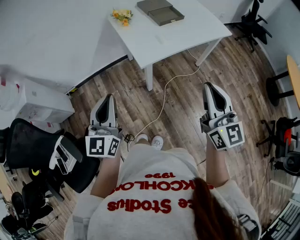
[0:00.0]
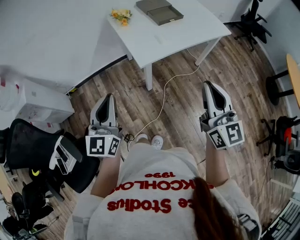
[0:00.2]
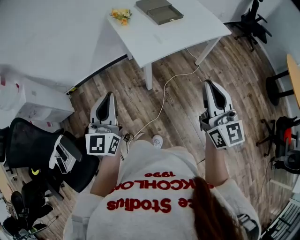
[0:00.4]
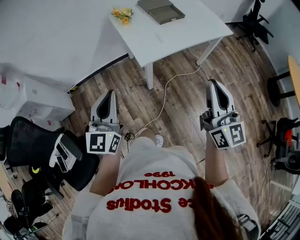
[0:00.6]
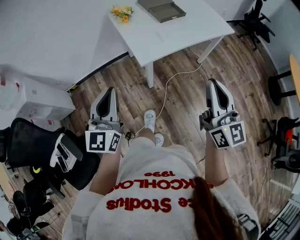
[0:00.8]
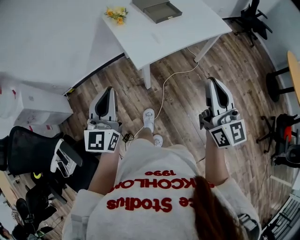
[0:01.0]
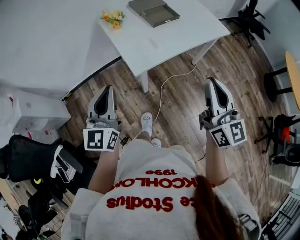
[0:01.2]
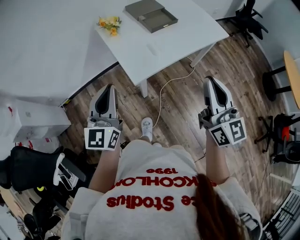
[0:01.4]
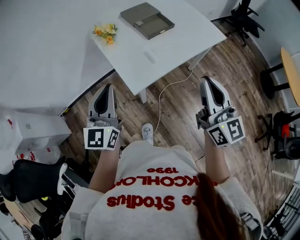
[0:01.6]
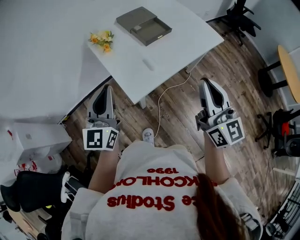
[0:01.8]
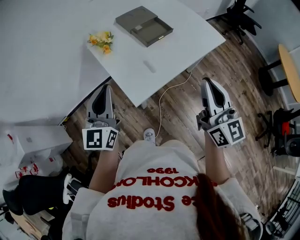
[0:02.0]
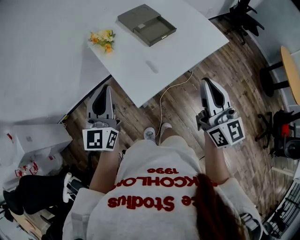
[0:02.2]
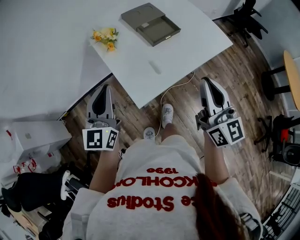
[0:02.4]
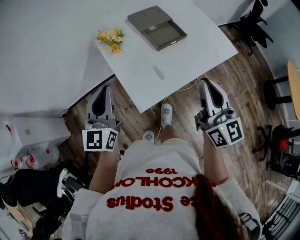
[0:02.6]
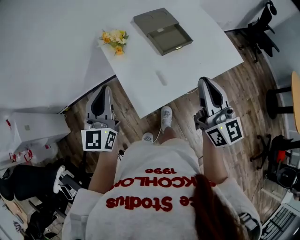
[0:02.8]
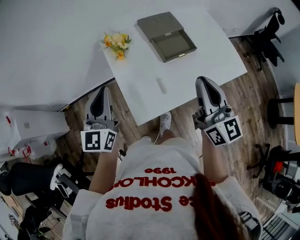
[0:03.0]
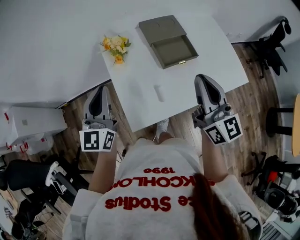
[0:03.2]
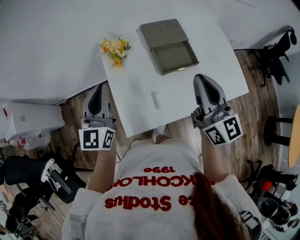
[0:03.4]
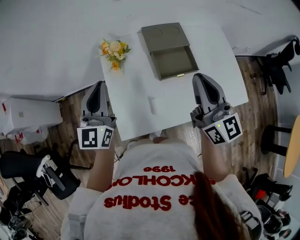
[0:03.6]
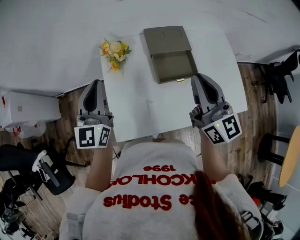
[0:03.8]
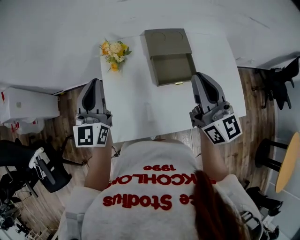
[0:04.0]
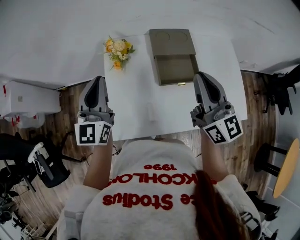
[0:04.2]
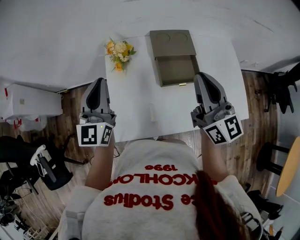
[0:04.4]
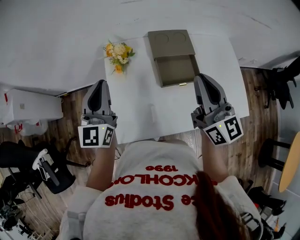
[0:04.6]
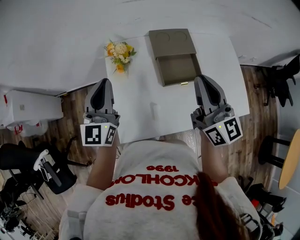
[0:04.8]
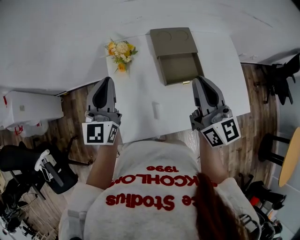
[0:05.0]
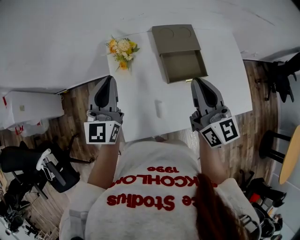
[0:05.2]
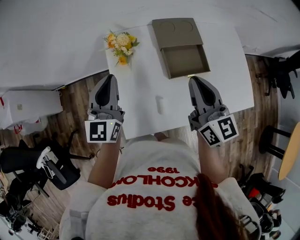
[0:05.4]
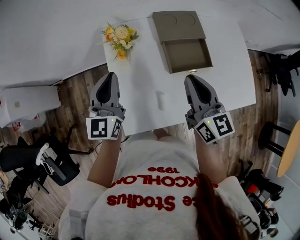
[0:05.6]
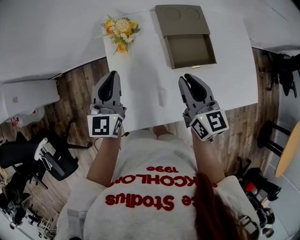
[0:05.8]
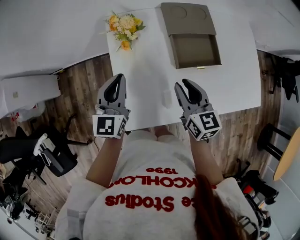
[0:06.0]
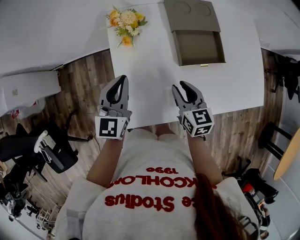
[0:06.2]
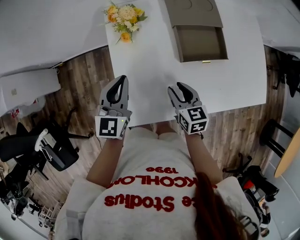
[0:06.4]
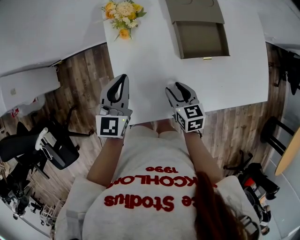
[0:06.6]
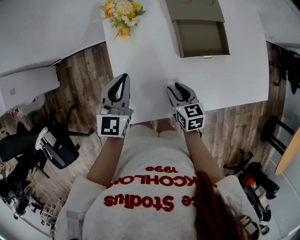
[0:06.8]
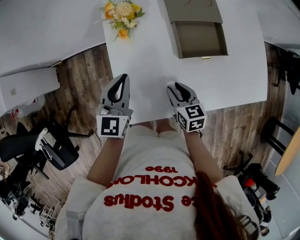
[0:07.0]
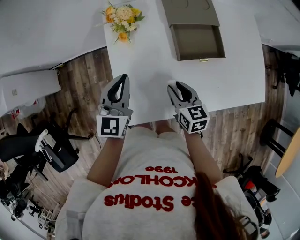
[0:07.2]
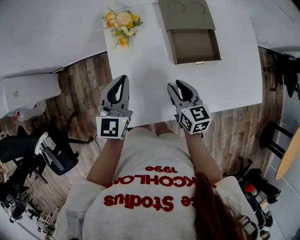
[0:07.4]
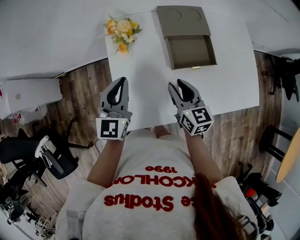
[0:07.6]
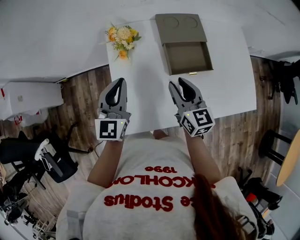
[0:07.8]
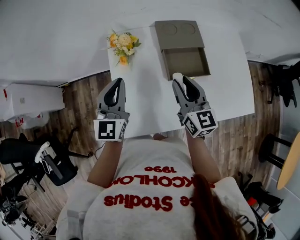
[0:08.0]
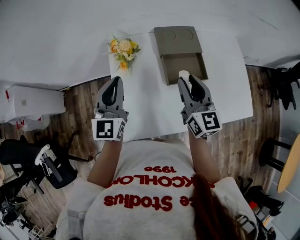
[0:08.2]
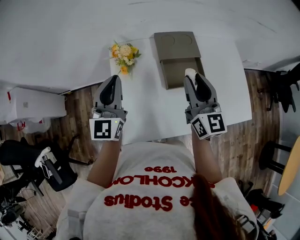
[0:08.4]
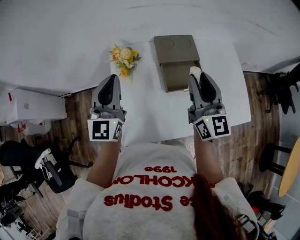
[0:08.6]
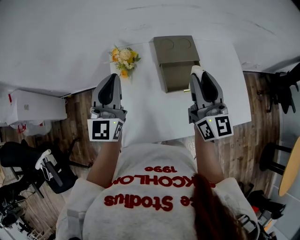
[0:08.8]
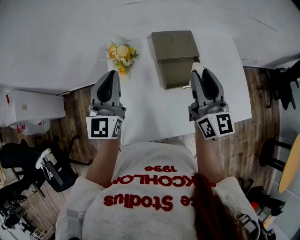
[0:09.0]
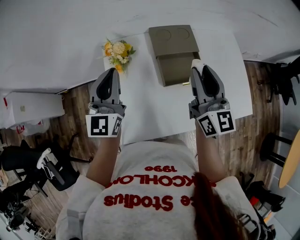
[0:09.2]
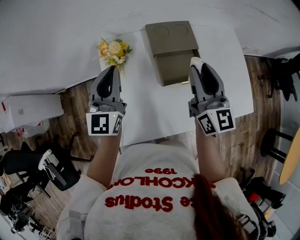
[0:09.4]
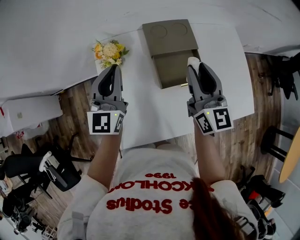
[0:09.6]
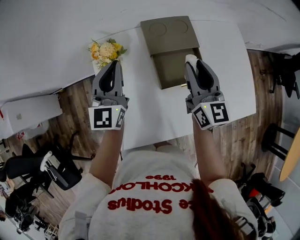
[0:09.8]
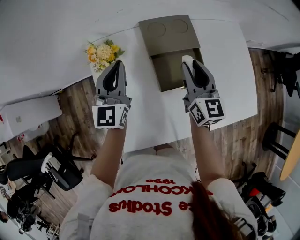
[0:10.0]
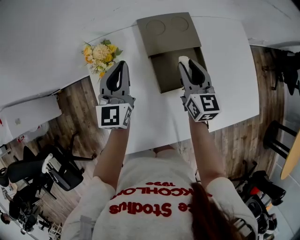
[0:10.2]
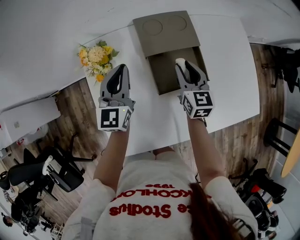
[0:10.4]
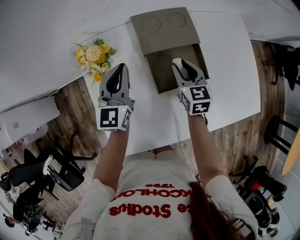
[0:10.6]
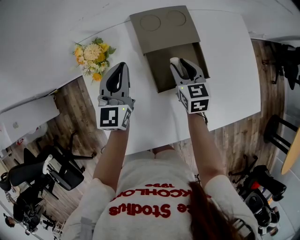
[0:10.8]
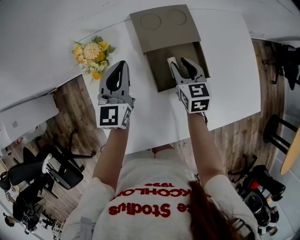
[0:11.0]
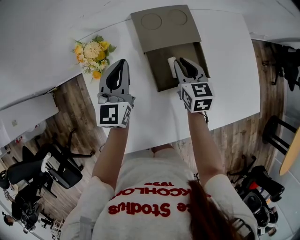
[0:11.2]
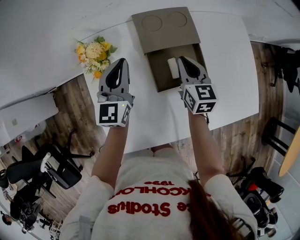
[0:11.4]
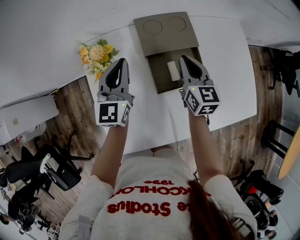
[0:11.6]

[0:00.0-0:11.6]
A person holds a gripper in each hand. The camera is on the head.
0:00.0 to 0:01.4: Both grippers move forward, about 15 cm.
0:01.4 to 0:02.8: The two grippers go some 20 cm forward.
0:02.8 to 0:04.4: The left gripper shifts roughly 15 cm forward and to the right, and rotates about 20 degrees; the right gripper goes approximately 20 cm forward and to the right, and changes its angle by roughly 20 degrees.
0:04.4 to 0:05.8: The right gripper travels downward and to the left by some 15 cm, and swivels some 20 degrees, while the left gripper travels downward by about 10 cm.
0:05.8 to 0:07.2: The right gripper heads downward, covering approximately 15 cm, and turns by some 20 degrees. Meanwhile the left gripper moves about 5 cm.
0:07.2 to 0:08.8: The left gripper moves upward, some 15 cm, and turns by about 20 degrees, while the right gripper moves upward, about 30 cm, and tilts its fingers roughly 40 degrees upward.
0:08.8 to 0:10.2: The left gripper travels downward, forward and to the right by about 20 cm; the right gripper is displaced downward and forward by approximately 20 cm, and changes its angle by some 20 degrees.
0:10.2 to 0:11.6: The right gripper goes downward and returns, roughly 10 cm each way, and closes its fingers.

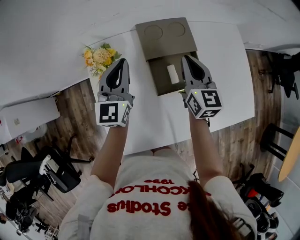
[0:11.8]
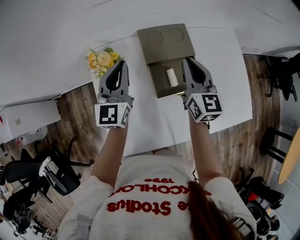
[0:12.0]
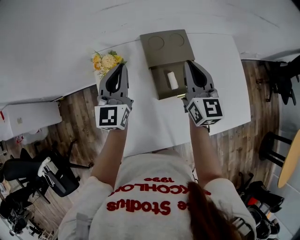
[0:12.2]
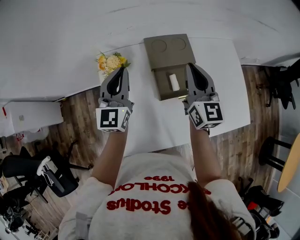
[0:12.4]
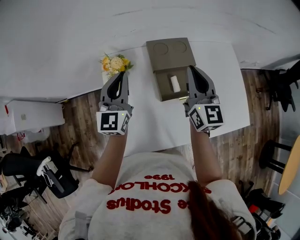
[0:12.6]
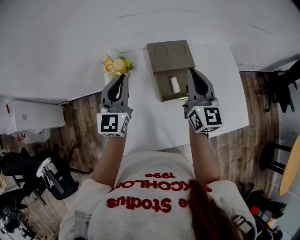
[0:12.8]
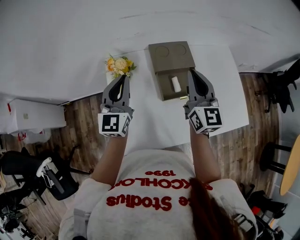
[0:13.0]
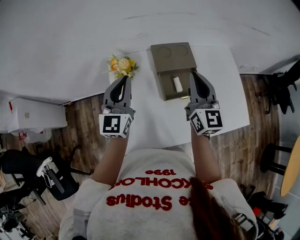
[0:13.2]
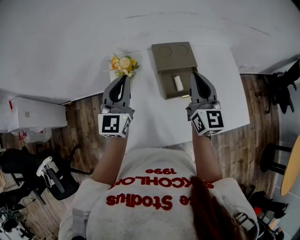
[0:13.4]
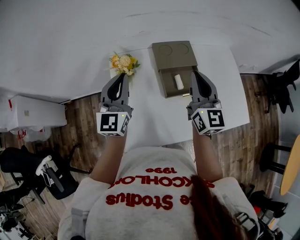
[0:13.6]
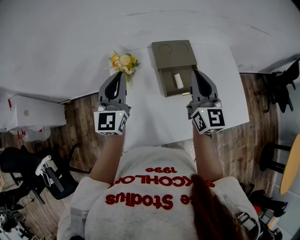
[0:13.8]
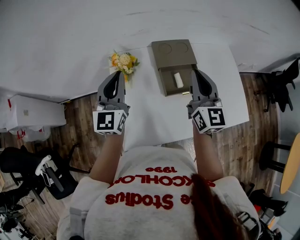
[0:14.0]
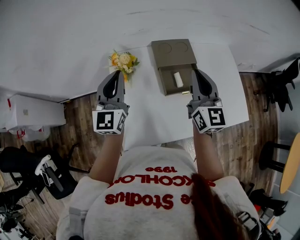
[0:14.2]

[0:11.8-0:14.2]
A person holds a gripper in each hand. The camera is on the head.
0:11.8 to 0:13.0: Both grippers travel together upward and backward, about 10 cm.
0:13.0 to 0:14.2: There are only small adjustments of the grippers.

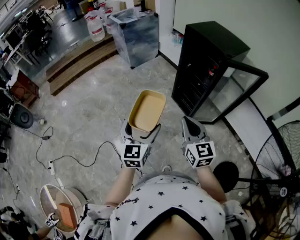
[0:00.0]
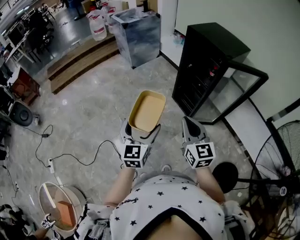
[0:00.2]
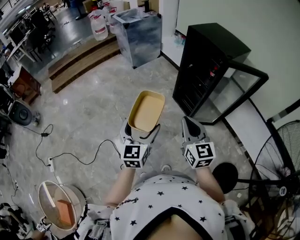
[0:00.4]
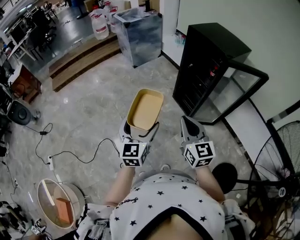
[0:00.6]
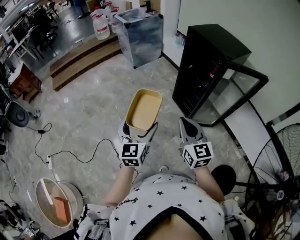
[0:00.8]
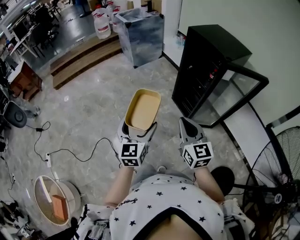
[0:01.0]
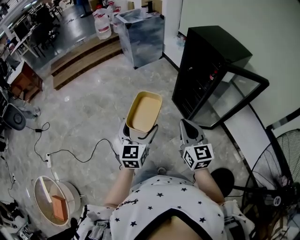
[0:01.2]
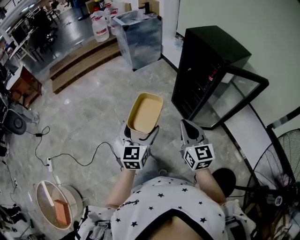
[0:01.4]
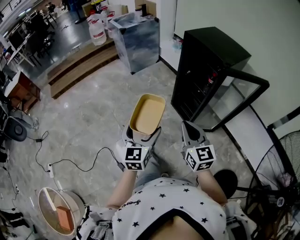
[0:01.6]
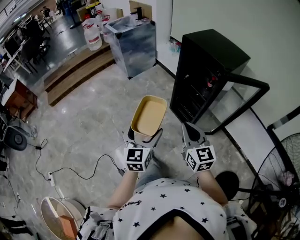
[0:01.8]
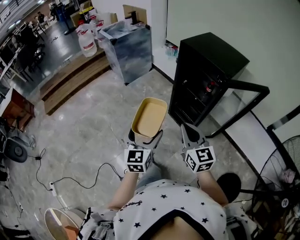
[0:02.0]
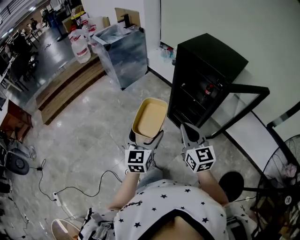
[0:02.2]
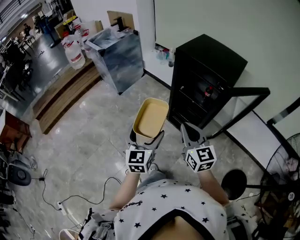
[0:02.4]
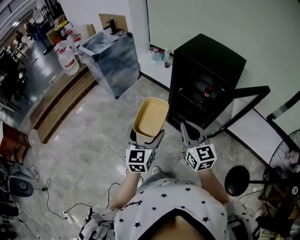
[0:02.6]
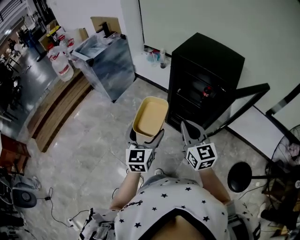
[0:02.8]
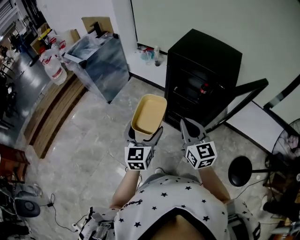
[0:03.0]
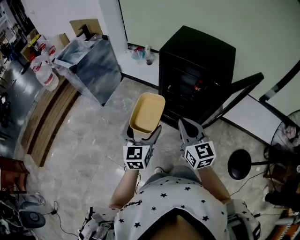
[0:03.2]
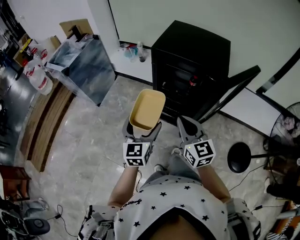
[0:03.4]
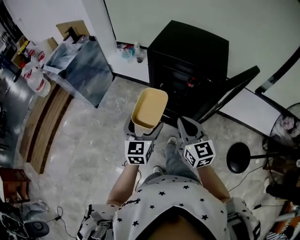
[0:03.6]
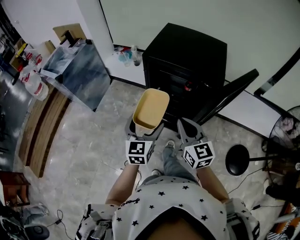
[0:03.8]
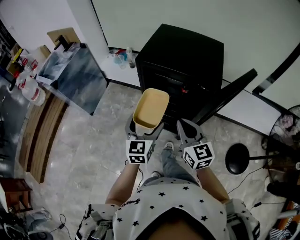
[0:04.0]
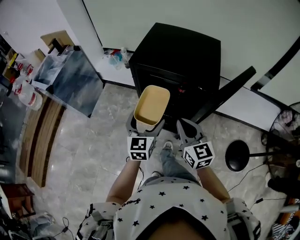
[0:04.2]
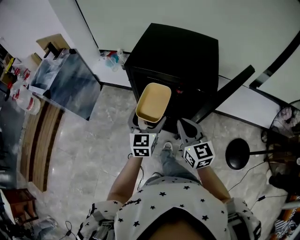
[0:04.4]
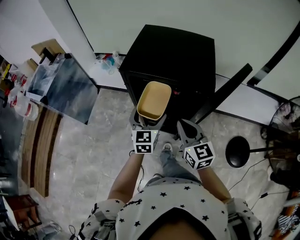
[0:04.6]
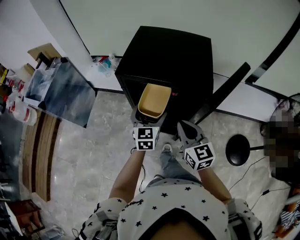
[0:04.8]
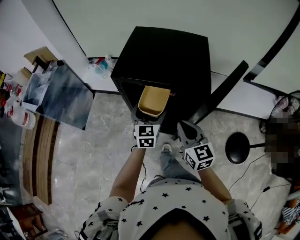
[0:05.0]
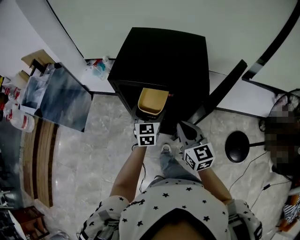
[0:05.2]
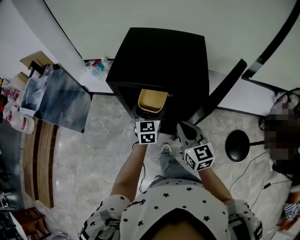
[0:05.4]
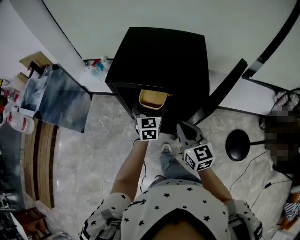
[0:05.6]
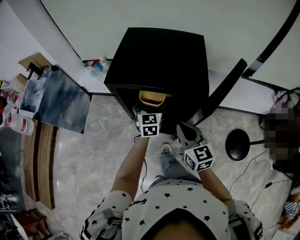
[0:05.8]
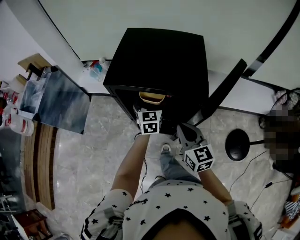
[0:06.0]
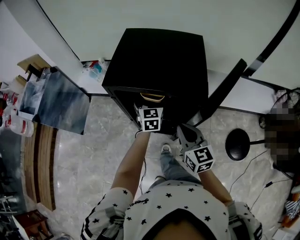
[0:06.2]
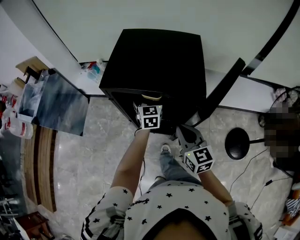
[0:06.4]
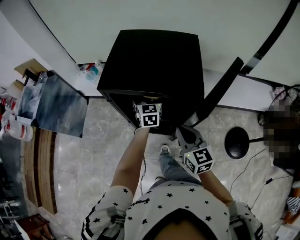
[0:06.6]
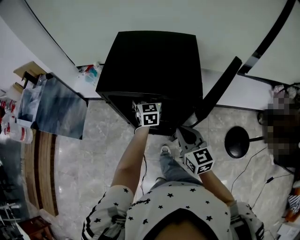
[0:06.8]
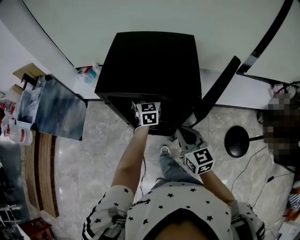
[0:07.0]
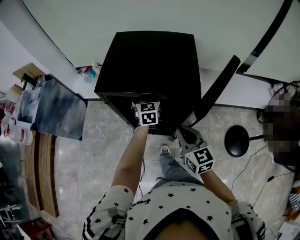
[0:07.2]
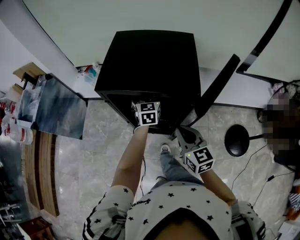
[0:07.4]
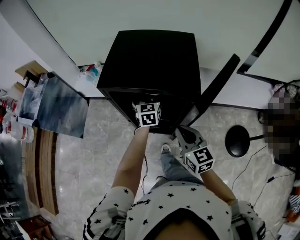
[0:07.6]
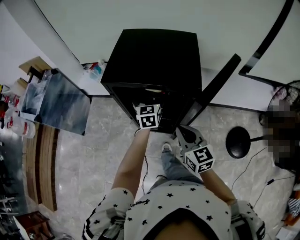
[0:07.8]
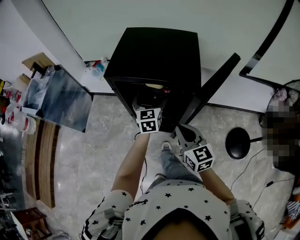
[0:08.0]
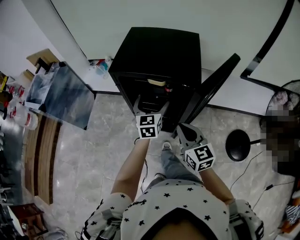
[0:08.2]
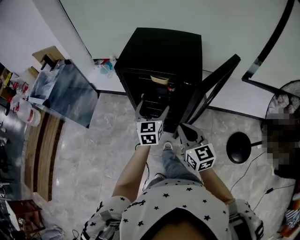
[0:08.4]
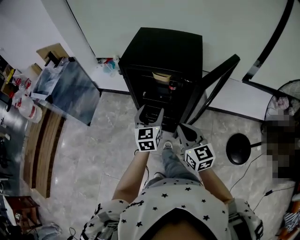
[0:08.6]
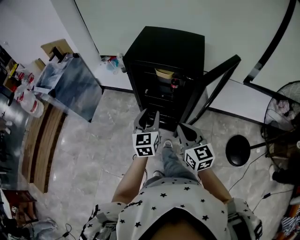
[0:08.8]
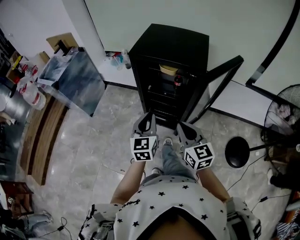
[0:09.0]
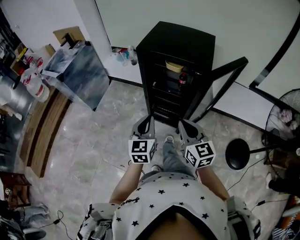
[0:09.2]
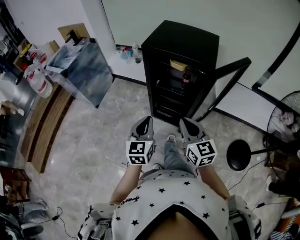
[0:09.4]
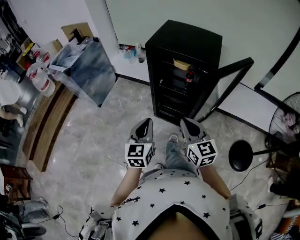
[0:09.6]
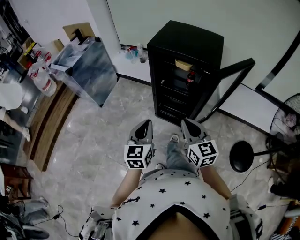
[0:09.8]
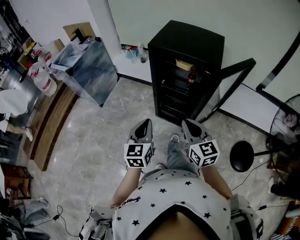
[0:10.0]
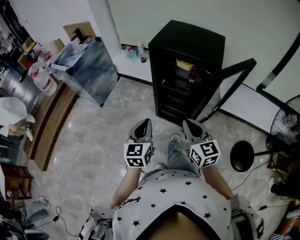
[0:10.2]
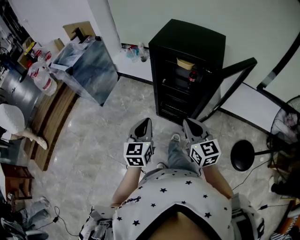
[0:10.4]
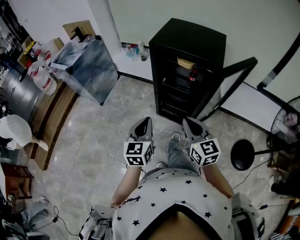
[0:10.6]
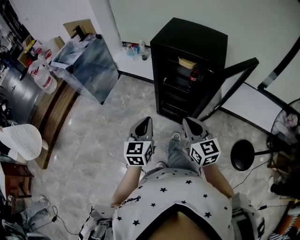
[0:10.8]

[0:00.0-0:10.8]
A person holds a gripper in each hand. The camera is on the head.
0:00.0 to 0:01.6: The grippers move only a little.
0:01.6 to 0:03.0: Both grippers travel together forward, about 30 cm. The right gripper rotates some 20 degrees; the left gripper swivels some 20 degrees.
0:03.0 to 0:04.6: The left gripper travels forward and to the right by some 30 cm. Meanwhile the right gripper is displaced forward and to the right by some 20 cm.
0:04.6 to 0:06.2: The right gripper changes place by about 5 cm. Meanwhile the left gripper travels forward and to the right by some 15 cm.
0:06.2 to 0:07.8: The grippers move only a little.
0:07.8 to 0:09.2: The right gripper moves backward, some 15 cm. The left gripper is displaced backward by approximately 30 cm, and closes its fingers.
0:09.2 to 0:10.8: The left gripper is displaced to the left by some 5 cm.
